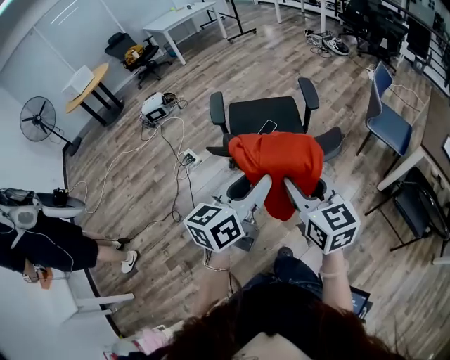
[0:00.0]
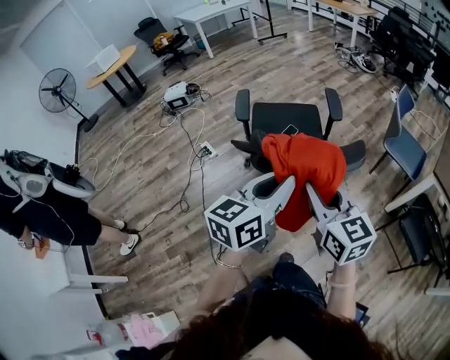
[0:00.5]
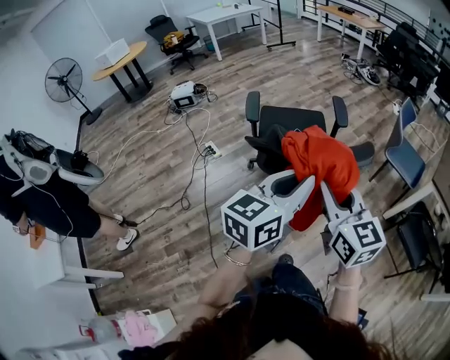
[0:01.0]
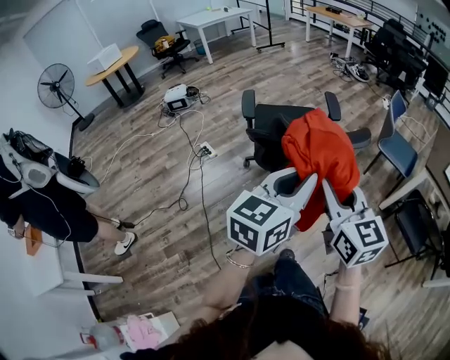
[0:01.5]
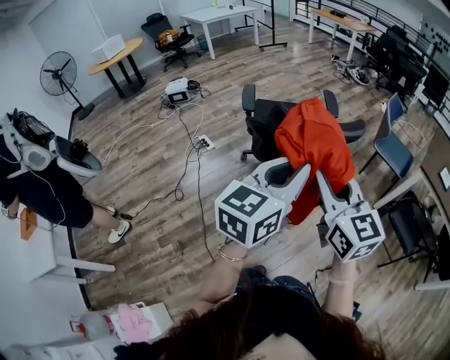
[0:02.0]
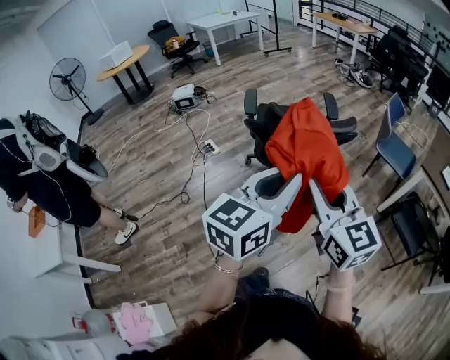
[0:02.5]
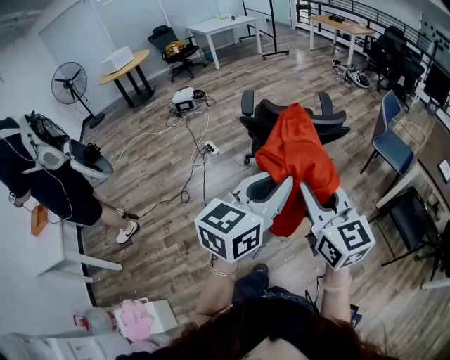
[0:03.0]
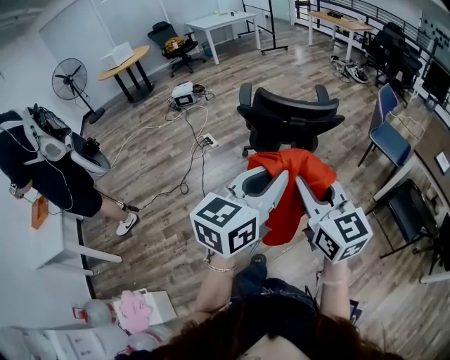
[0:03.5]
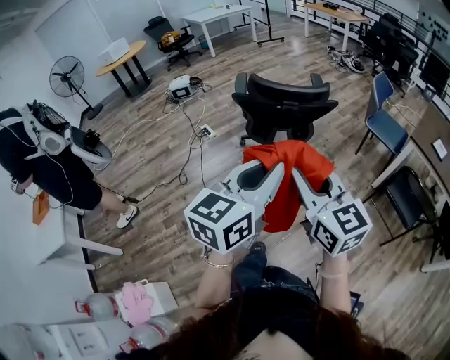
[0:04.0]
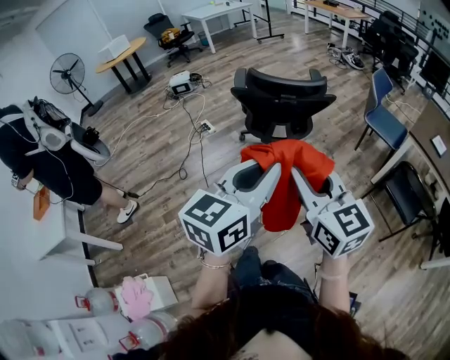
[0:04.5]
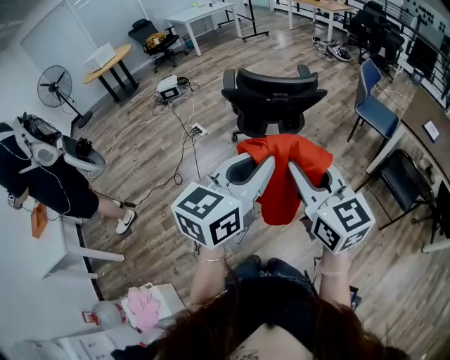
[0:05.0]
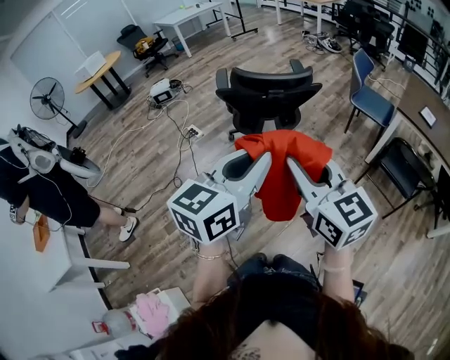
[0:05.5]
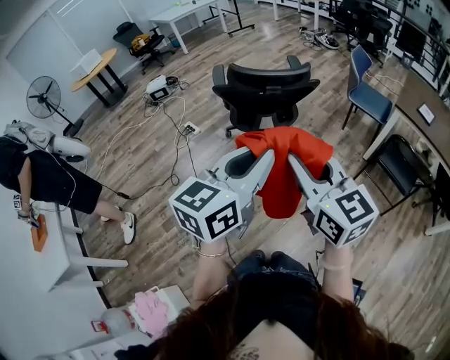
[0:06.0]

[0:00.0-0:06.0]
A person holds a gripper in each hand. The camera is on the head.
0.0 to 2.0 s: Both grippers travel together backward and upward, some 20 cm. The left gripper closes up.
2.0 to 4.0 s: Both grippers travel together backward, some 15 cm.
4.0 to 6.0 s: The grippers move only a little.

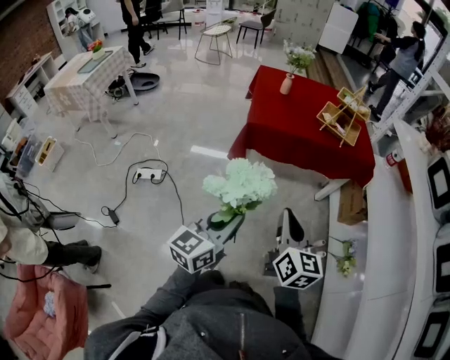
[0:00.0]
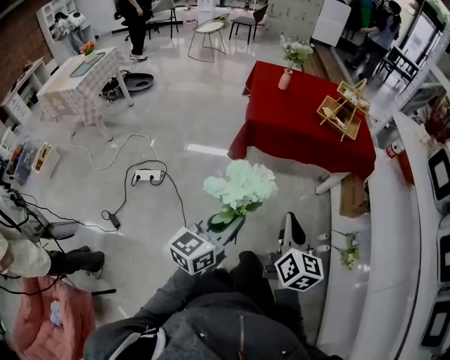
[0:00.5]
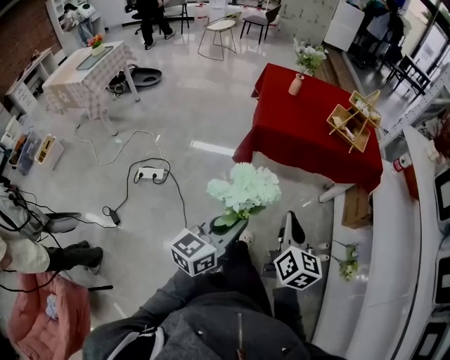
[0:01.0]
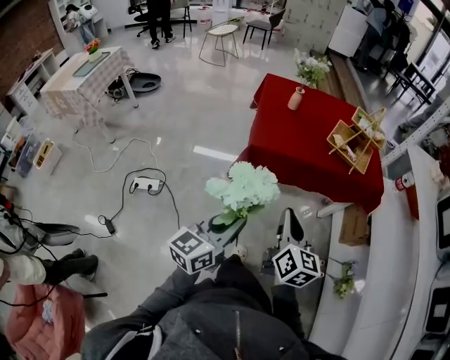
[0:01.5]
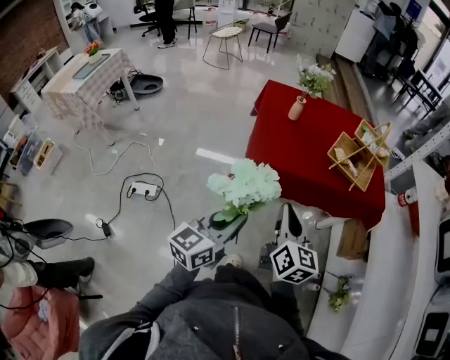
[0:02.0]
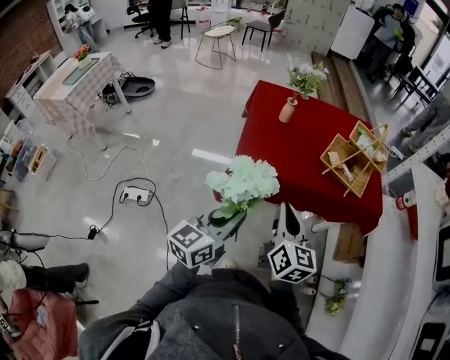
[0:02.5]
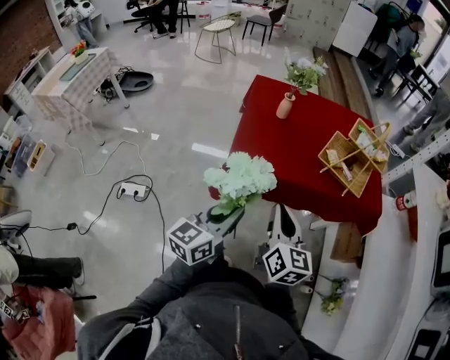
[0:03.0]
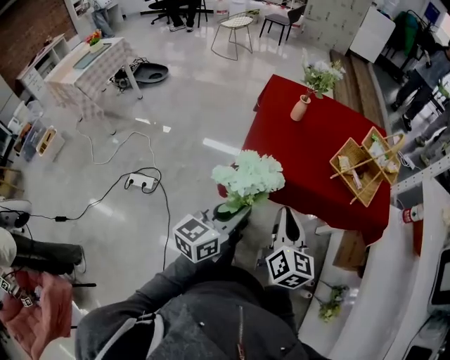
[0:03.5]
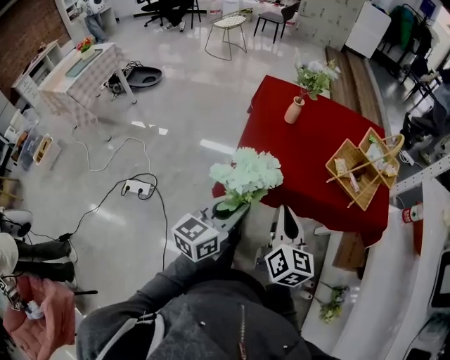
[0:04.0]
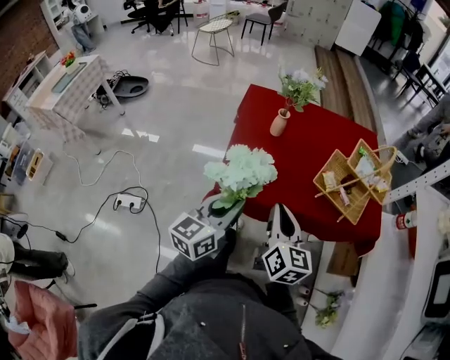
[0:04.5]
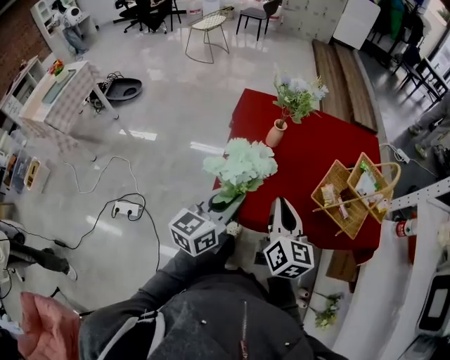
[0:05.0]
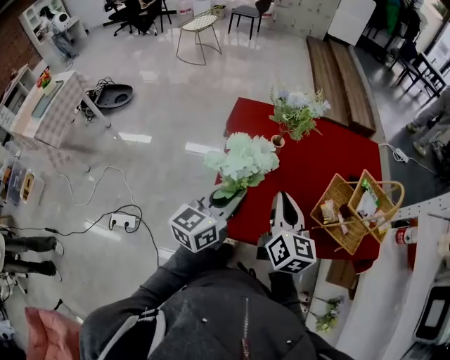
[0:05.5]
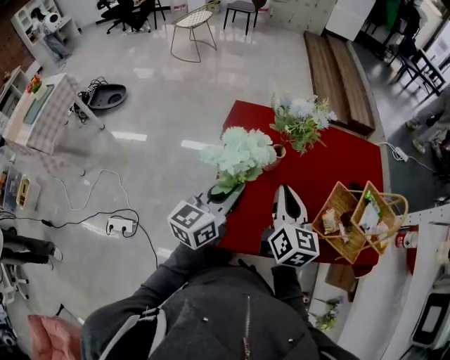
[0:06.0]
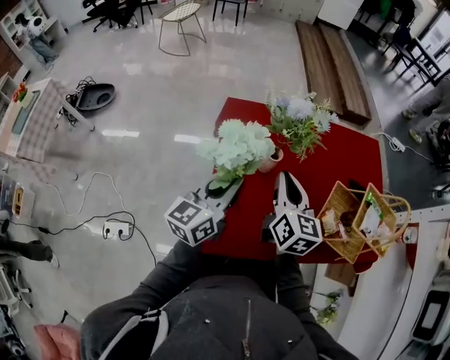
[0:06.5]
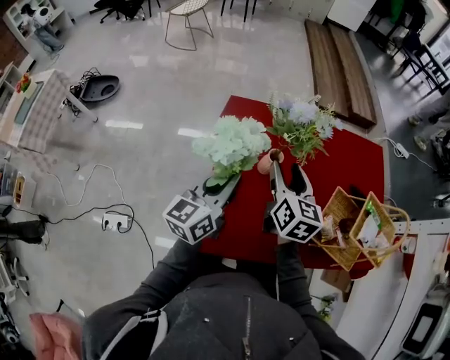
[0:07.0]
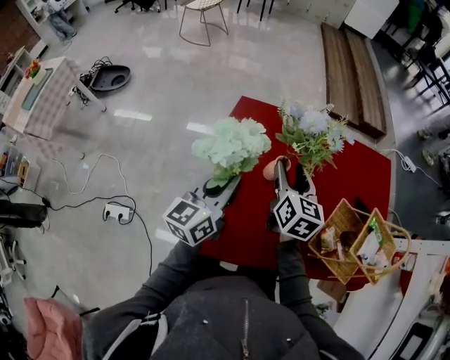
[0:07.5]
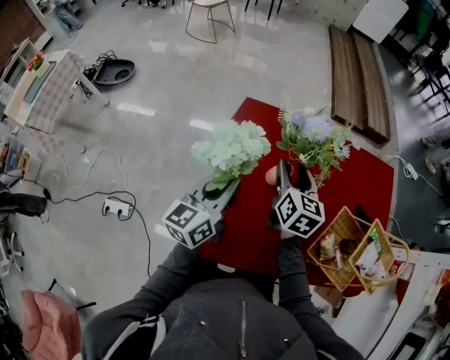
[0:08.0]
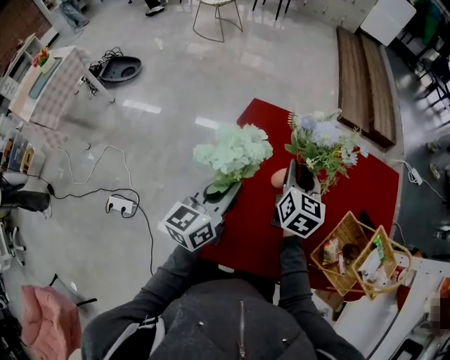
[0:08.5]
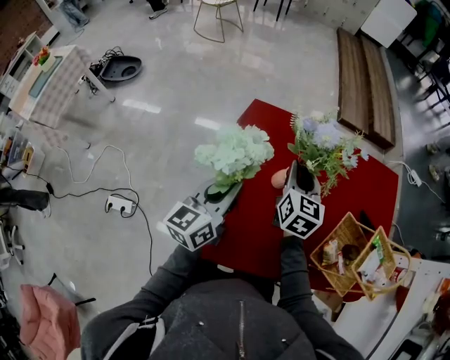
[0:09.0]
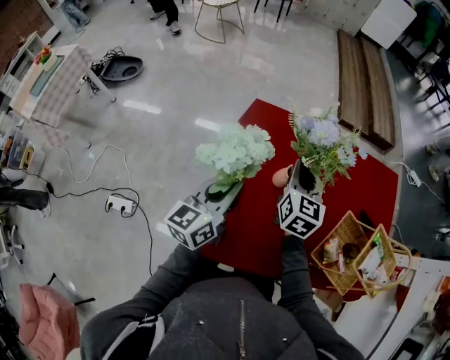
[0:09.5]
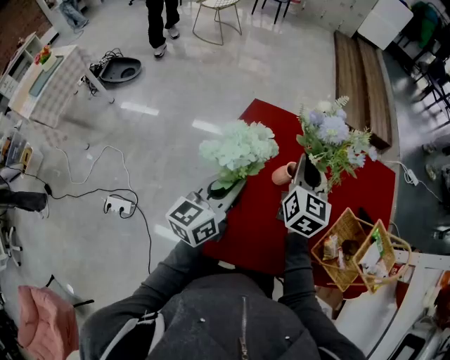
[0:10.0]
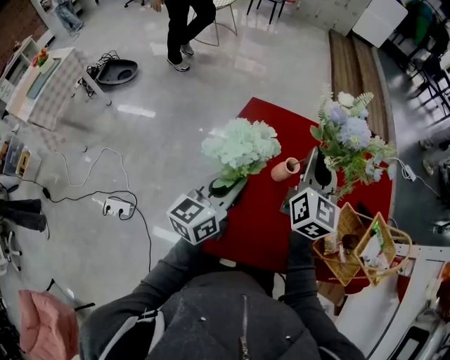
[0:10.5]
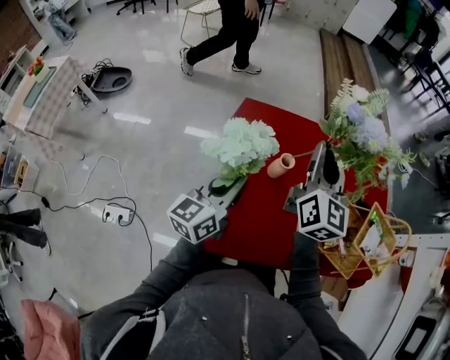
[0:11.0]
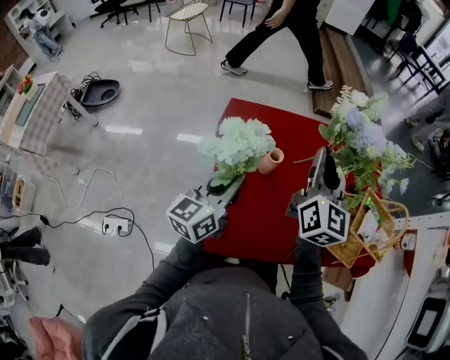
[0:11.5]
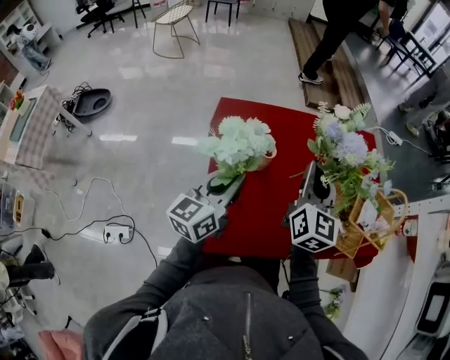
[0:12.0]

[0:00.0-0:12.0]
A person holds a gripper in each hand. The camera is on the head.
0.0 to 2.0 s: Both grippers travel together forward, roughly 25 cm.
2.0 to 4.0 s: Both grippers move forward, some 15 cm.
4.0 to 6.0 s: Both grippers move forward, approximately 30 cm.
6.0 to 8.0 s: The left gripper goes some 5 cm forward. The right gripper travels forward by approximately 15 cm, and opens its fingers.
8.0 to 10.0 s: The right gripper moves upward, roughly 5 cm, and closes its fingers.
10.0 to 12.0 s: The left gripper shifts roughly 5 cm to the right; the right gripper travels to the right, backward and upward by some 15 cm.

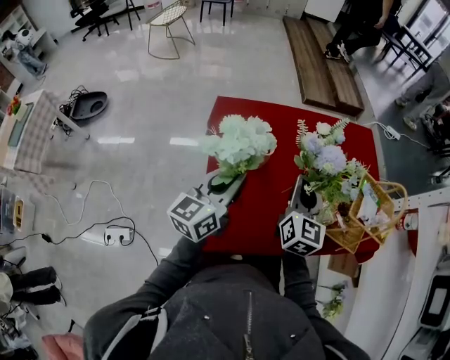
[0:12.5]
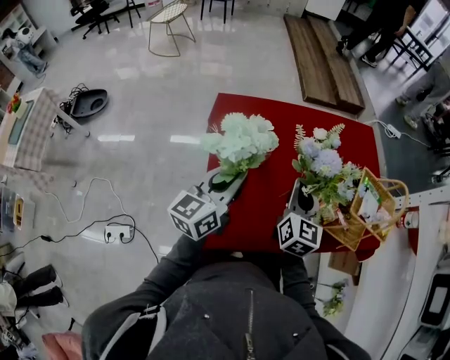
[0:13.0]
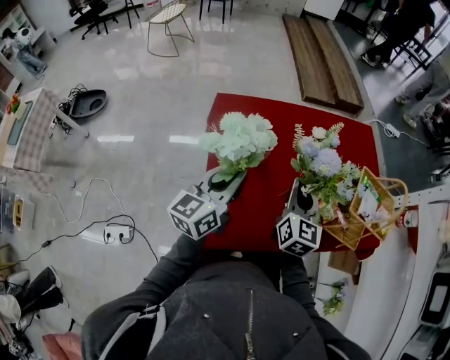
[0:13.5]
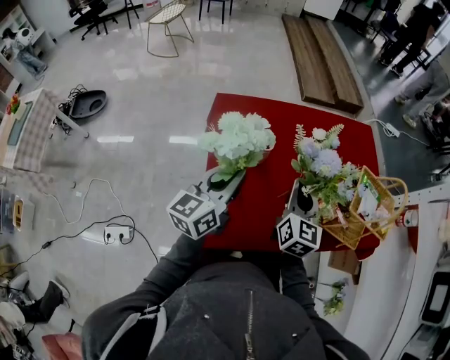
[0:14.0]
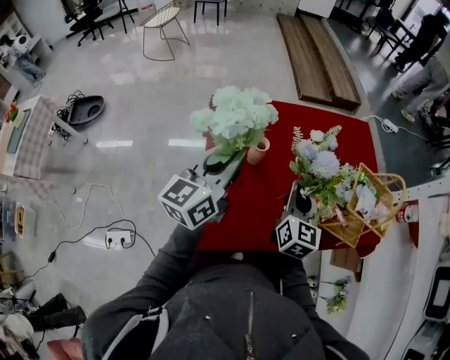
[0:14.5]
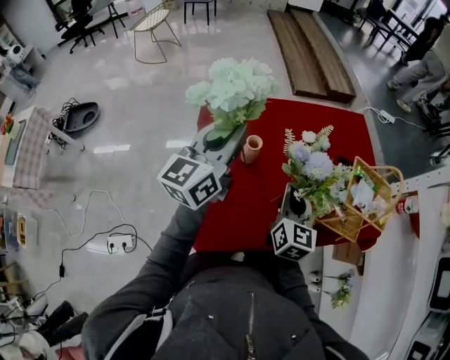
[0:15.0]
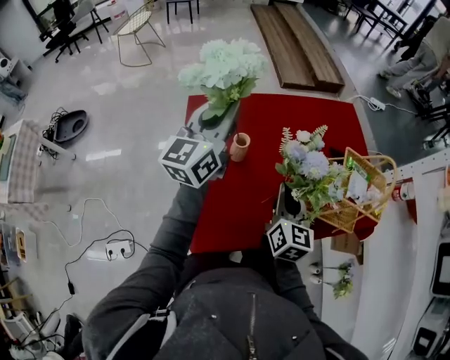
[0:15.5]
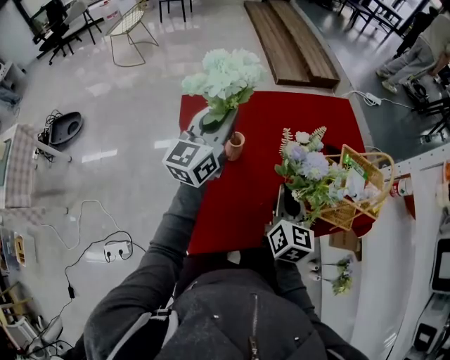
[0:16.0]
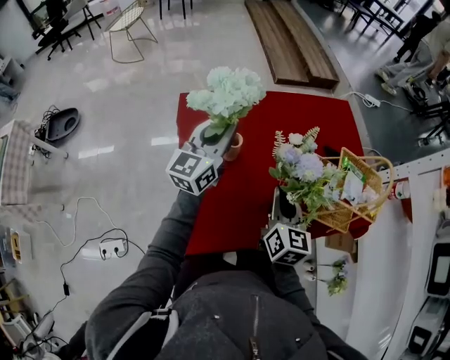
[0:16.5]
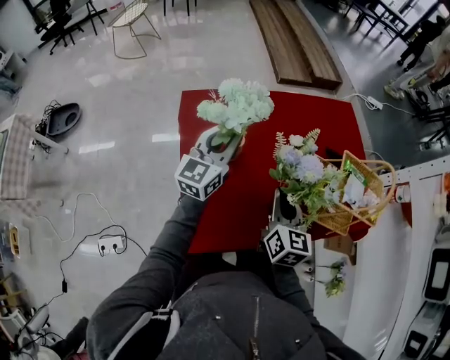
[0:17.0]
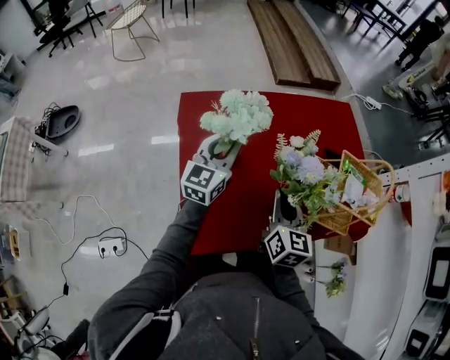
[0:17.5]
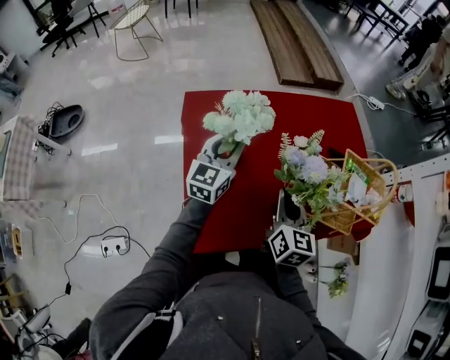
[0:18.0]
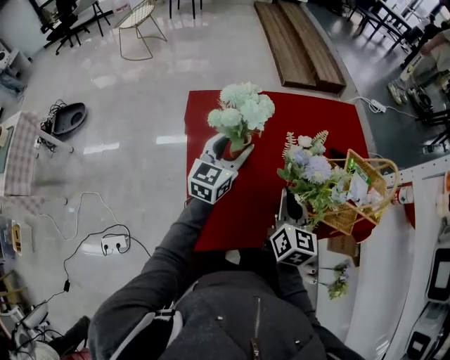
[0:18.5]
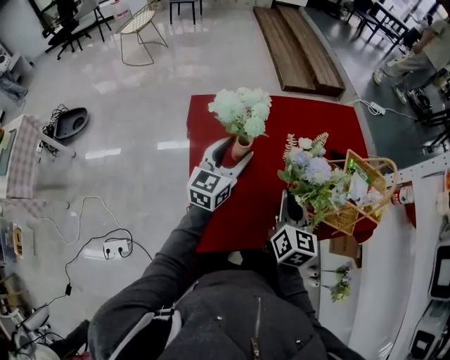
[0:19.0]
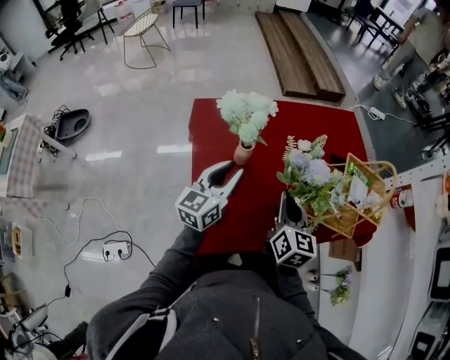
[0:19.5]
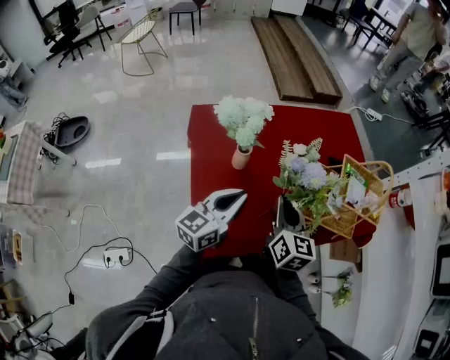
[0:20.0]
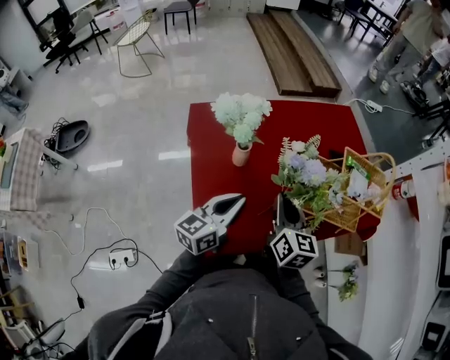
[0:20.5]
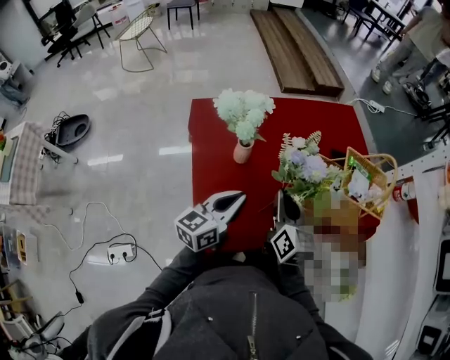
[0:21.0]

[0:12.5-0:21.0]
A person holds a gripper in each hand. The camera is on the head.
12.5 to 14.5 s: The left gripper is displaced upward by approximately 5 cm.
14.5 to 16.5 s: The left gripper goes roughly 10 cm forward.
16.5 to 19.0 s: The left gripper moves downward, roughly 5 cm, and opens its fingers.
19.0 to 21.0 s: The left gripper heads backward and to the right, covering some 15 cm, changes its angle by about 20 degrees, and closes up.

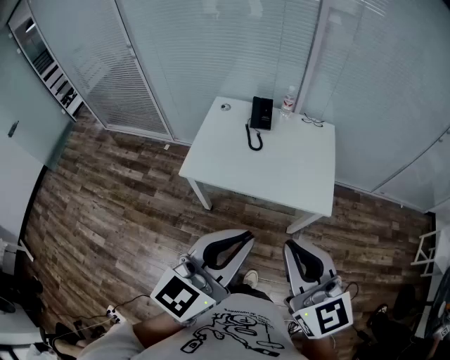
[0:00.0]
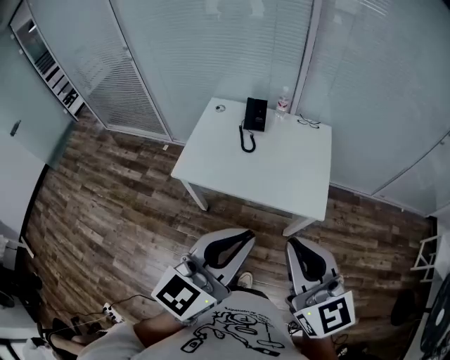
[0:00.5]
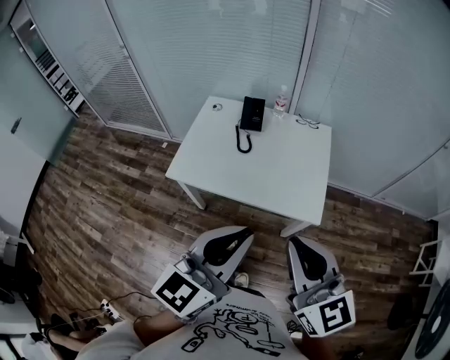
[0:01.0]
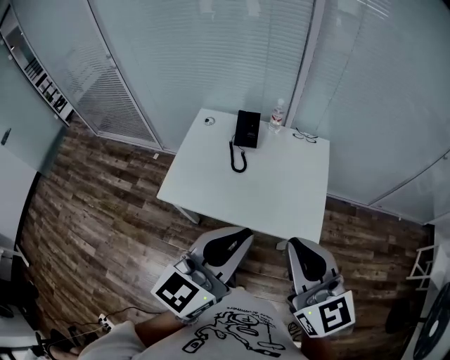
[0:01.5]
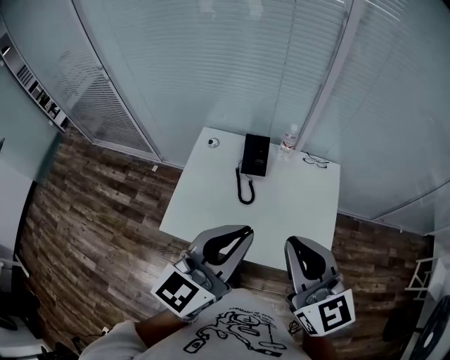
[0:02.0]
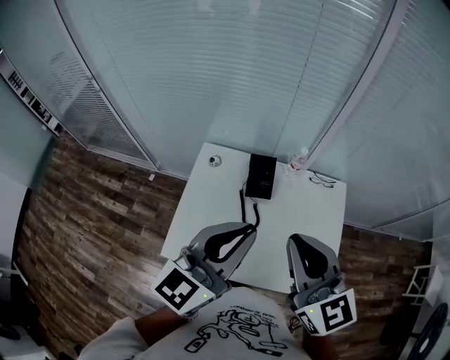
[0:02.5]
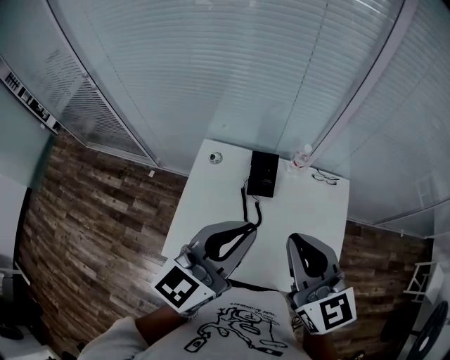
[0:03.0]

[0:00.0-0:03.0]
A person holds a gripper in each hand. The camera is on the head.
0.0 to 1.5 s: The left gripper heads forward, covering approximately 15 cm; the right gripper moves forward and to the right, approximately 20 cm.
1.5 to 3.0 s: The grippers both shift forward and to the left by approximately 30 cm.
